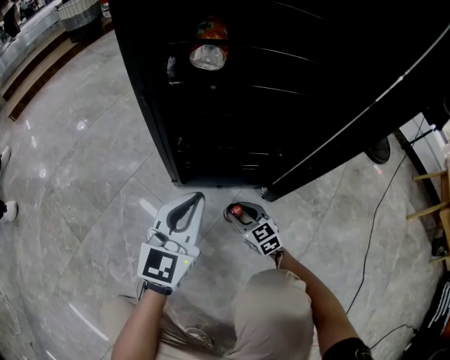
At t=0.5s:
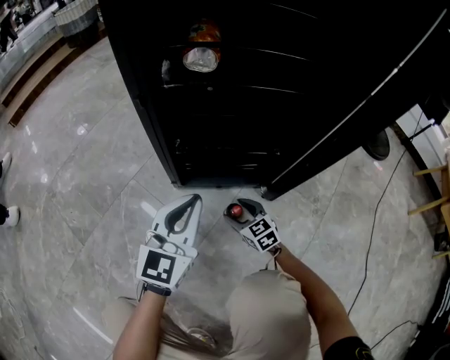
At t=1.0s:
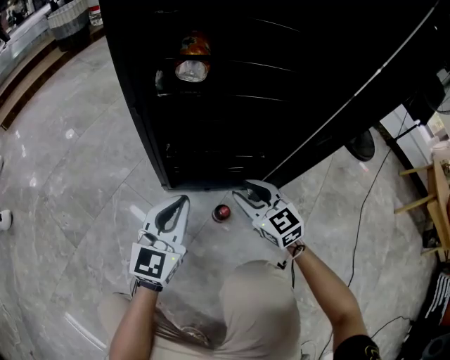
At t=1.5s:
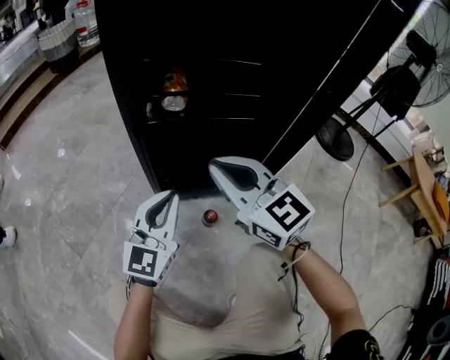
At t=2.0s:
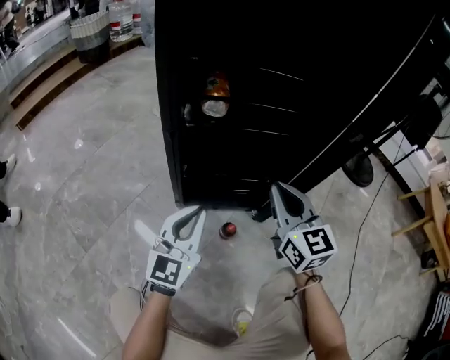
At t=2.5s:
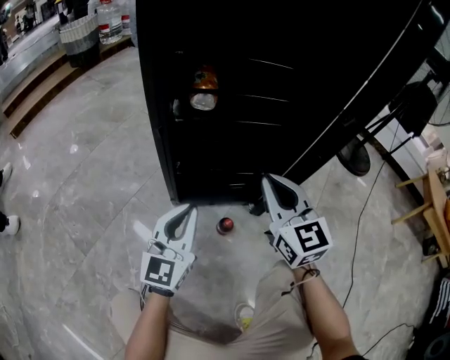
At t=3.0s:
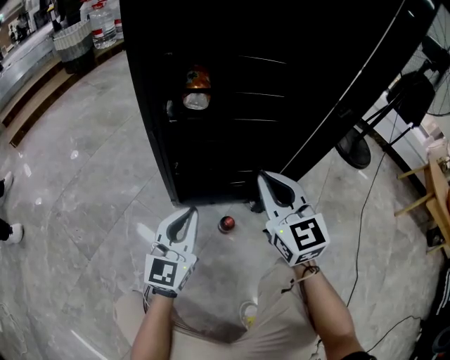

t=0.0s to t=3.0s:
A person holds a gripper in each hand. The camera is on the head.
t=0.0s to t=1.5s: The left gripper heads upward, covering roughly 10 cm. The right gripper shifts about 40 cm upward, rotates about 30 degrees, and closes.
t=1.5s to t=3.0s: The left gripper shifts roughly 5 cm downward. Meanwhile the right gripper goes roughly 10 cm to the right and downward, and swivels some 20 degrees.

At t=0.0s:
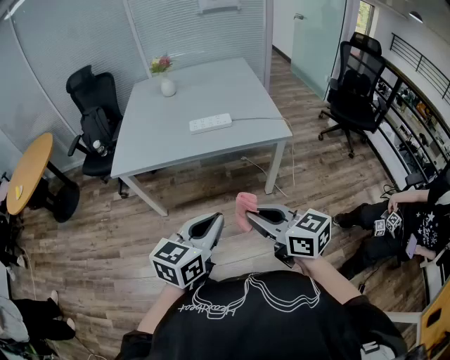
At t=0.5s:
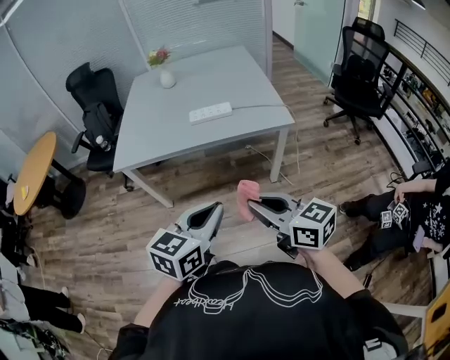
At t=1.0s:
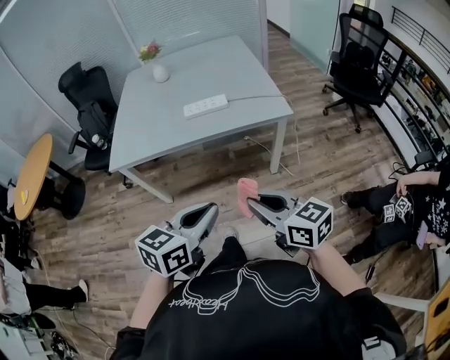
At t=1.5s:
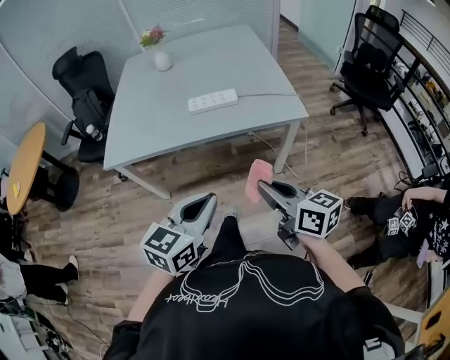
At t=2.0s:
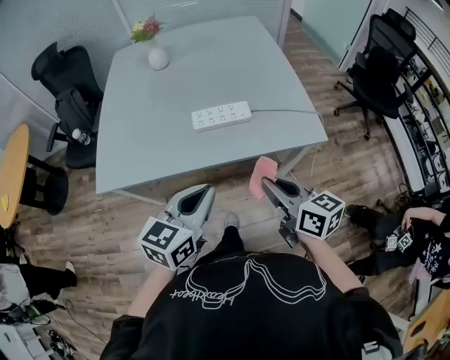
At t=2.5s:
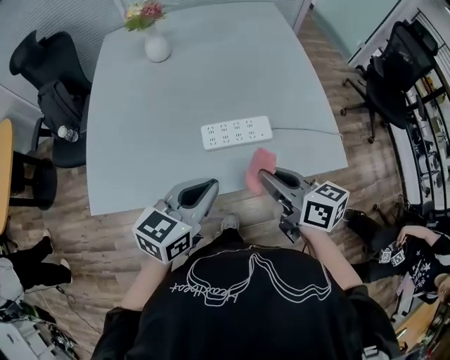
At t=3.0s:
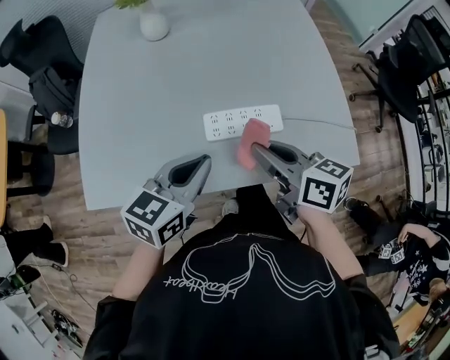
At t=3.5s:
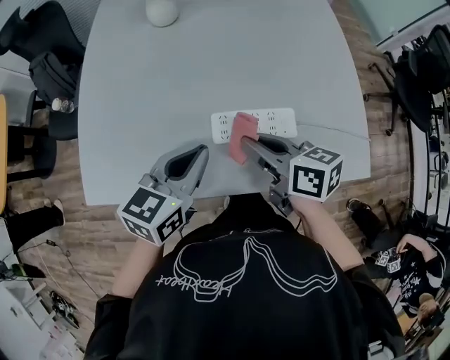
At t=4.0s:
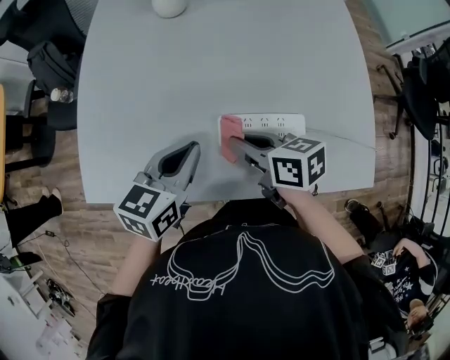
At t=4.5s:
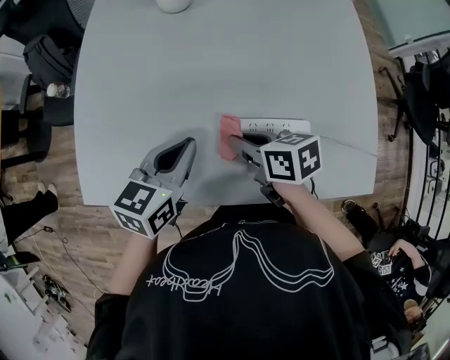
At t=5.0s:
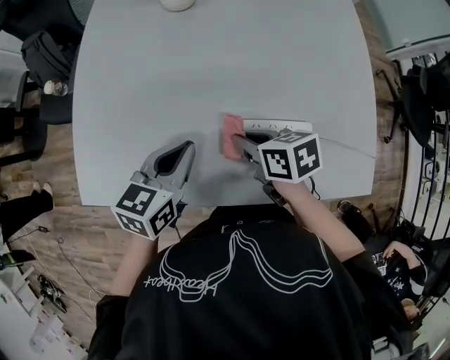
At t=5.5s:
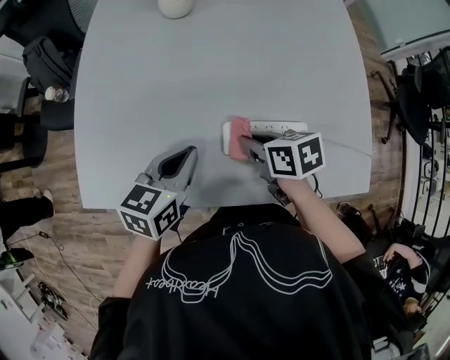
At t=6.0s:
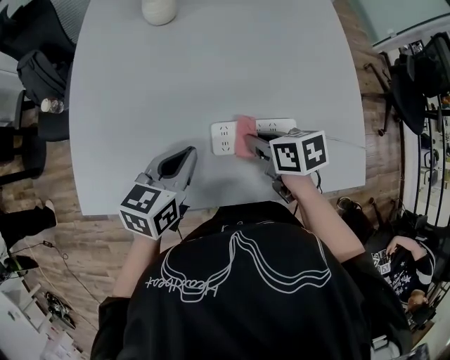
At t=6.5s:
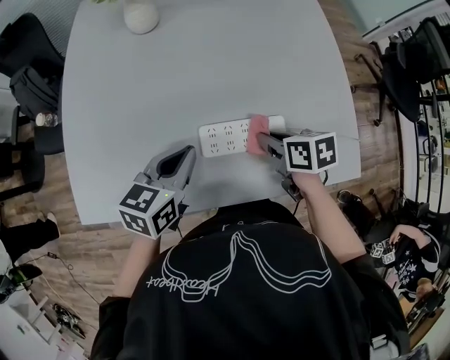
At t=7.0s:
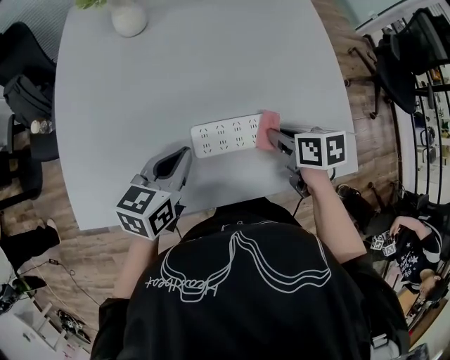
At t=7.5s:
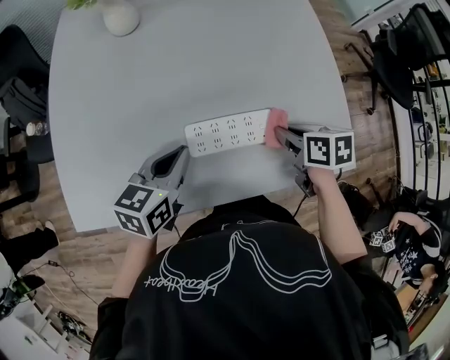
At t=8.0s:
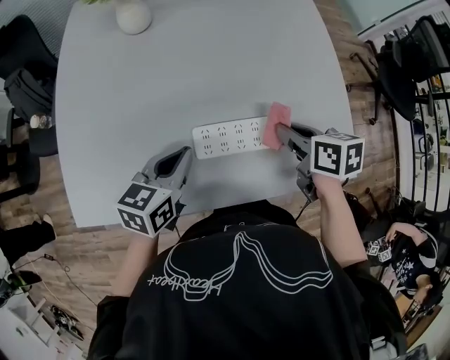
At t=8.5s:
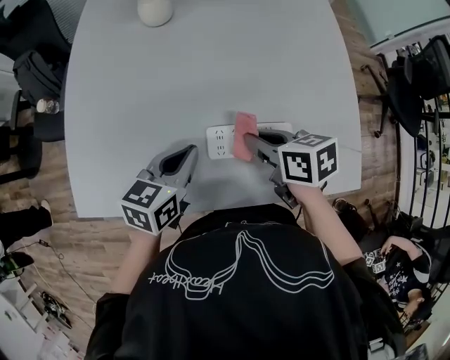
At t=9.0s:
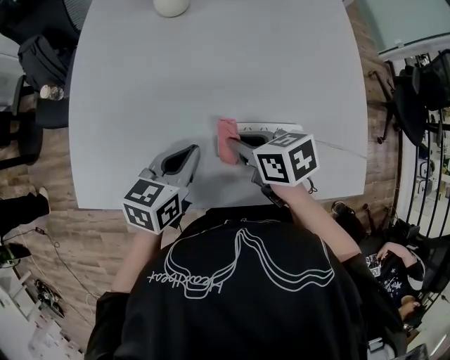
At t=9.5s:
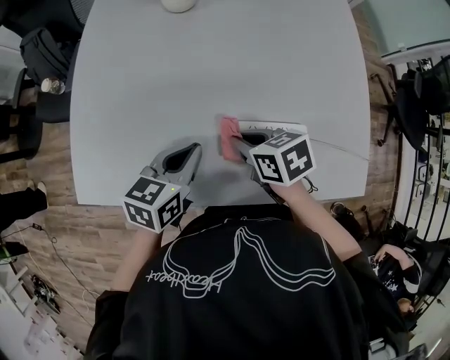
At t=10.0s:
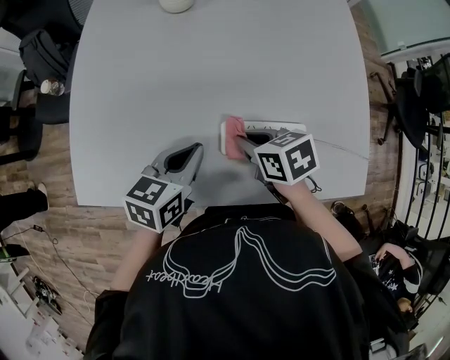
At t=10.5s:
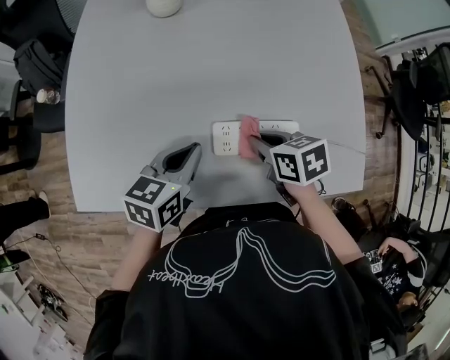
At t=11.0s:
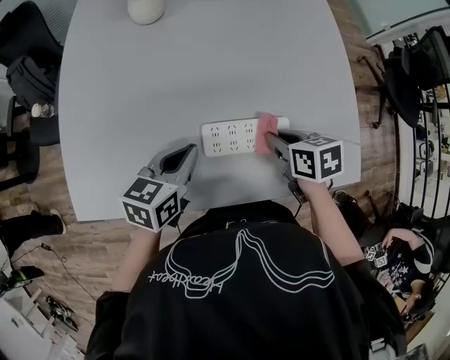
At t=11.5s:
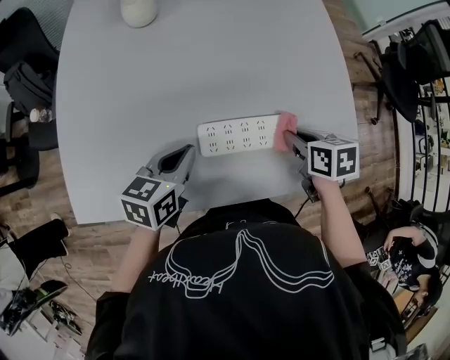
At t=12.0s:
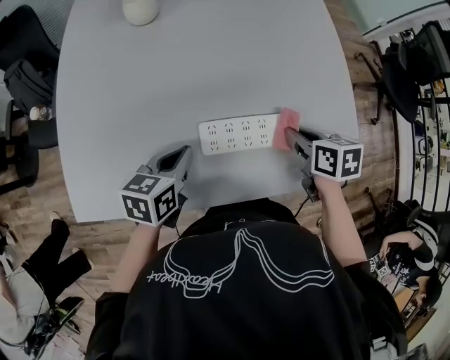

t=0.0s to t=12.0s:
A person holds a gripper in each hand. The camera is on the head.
t=0.0s to t=2.0s: The two grippers go some 35 cm forward.
t=2.0s to t=4.0s: The two grippers go some 35 cm forward. The right gripper swivels some 30 degrees.
t=4.0s to t=6.0s: The right gripper goes roughly 5 cm to the right.
t=6.0s to t=8.0s: The right gripper travels to the right by roughly 10 cm.
t=8.0s to t=10.0s: The right gripper moves to the left, about 20 cm, and changes its angle by about 30 degrees; the left gripper moves to the left, some 5 cm.
t=10.0s to t=12.0s: The right gripper is displaced to the right by roughly 20 cm, and changes its angle by roughly 30 degrees.

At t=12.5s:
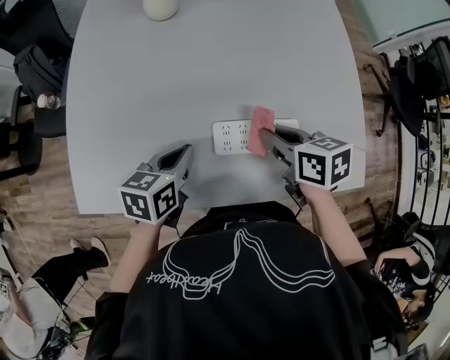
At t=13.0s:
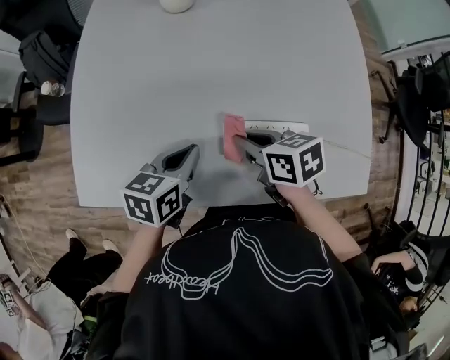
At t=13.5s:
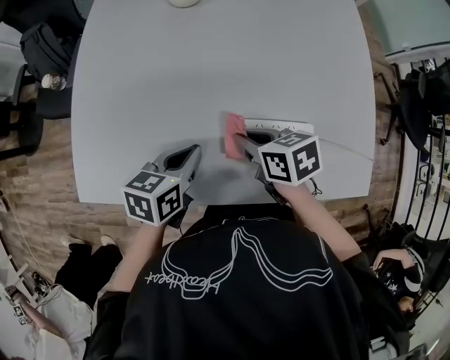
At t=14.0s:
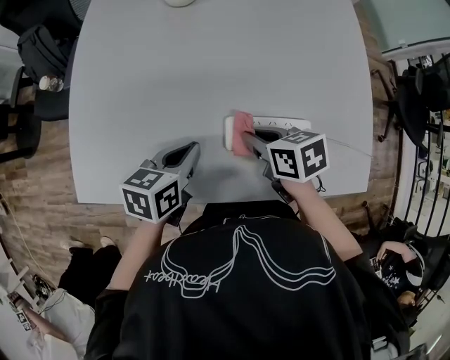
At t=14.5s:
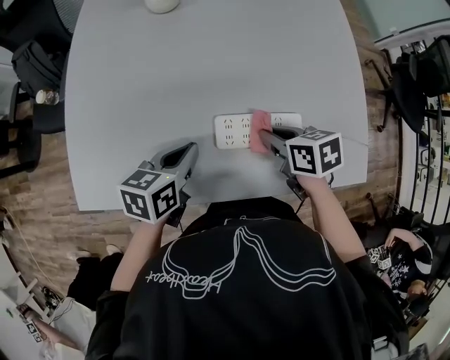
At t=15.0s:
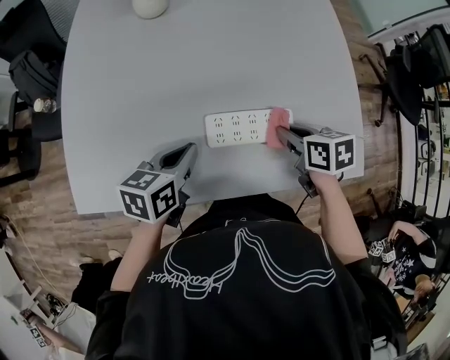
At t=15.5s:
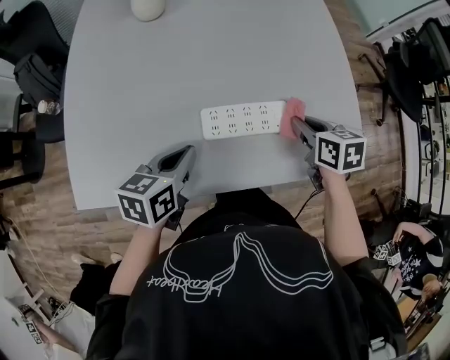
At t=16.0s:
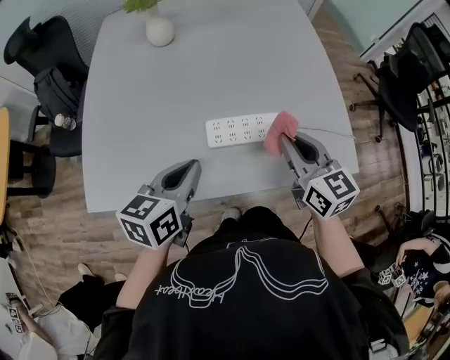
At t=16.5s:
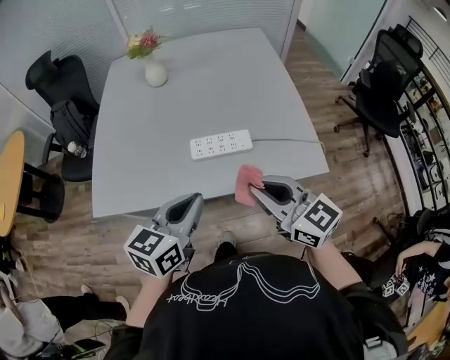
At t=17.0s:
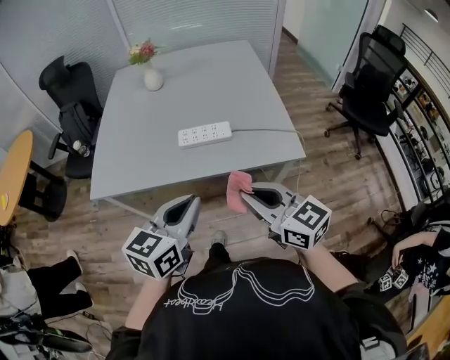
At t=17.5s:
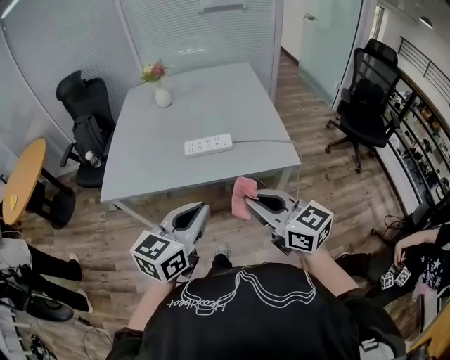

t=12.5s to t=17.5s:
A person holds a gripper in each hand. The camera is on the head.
t=12.5s to t=15.0s: The right gripper goes roughly 5 cm to the right.
t=15.0s to t=17.5s: The two grippers travel together, backward, about 40 cm. Both grippers travel together upward, about 25 cm. The left gripper changes its angle by approximately 40 degrees. The right gripper angles its fingers upward, by roughly 50 degrees.

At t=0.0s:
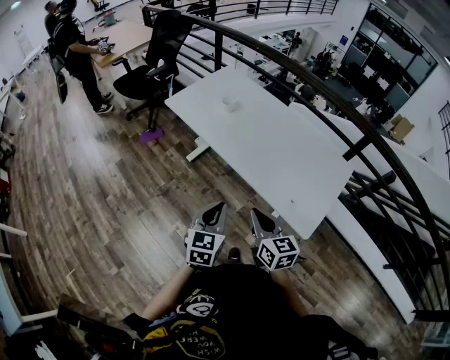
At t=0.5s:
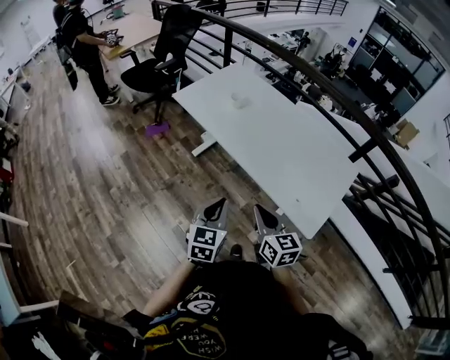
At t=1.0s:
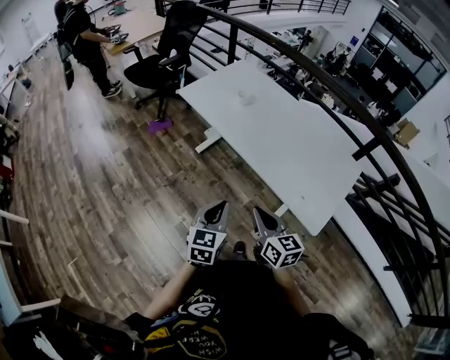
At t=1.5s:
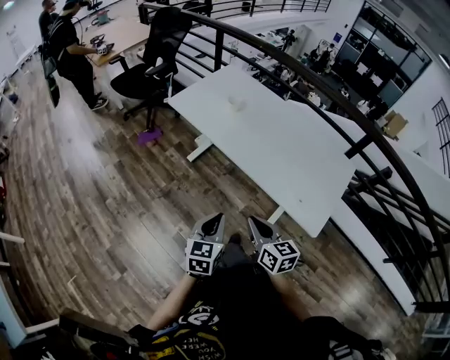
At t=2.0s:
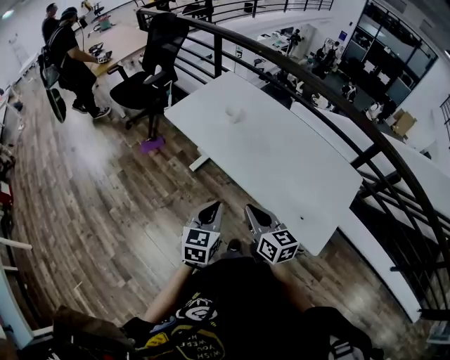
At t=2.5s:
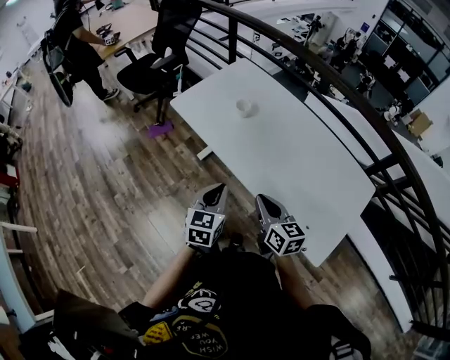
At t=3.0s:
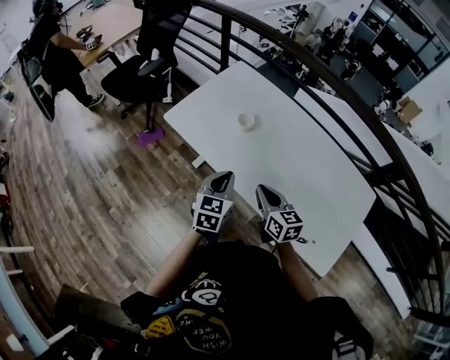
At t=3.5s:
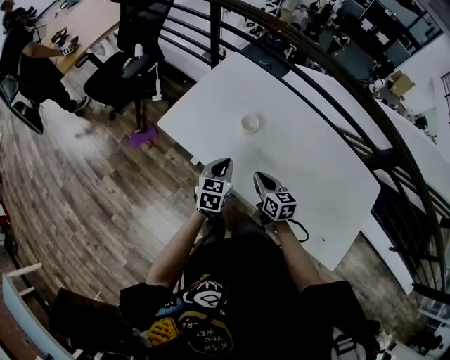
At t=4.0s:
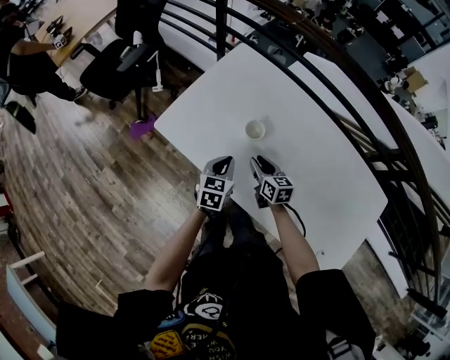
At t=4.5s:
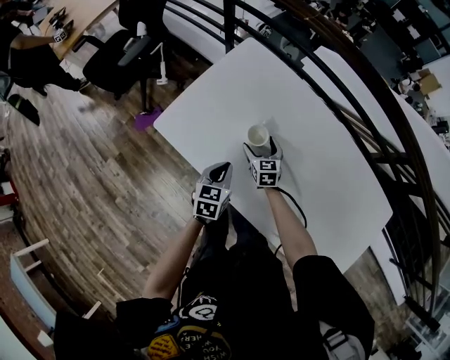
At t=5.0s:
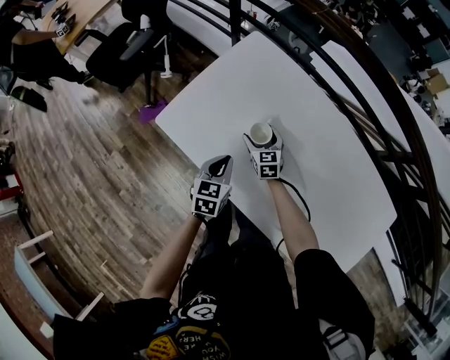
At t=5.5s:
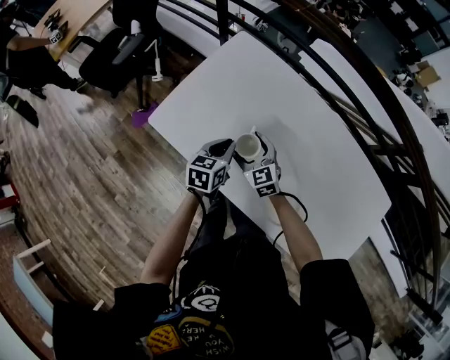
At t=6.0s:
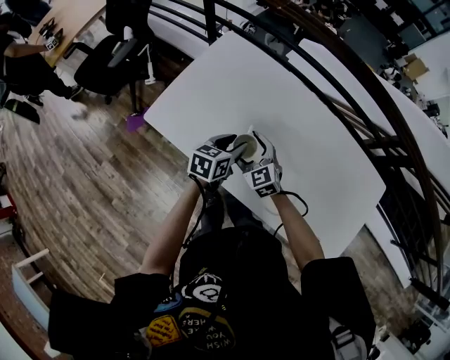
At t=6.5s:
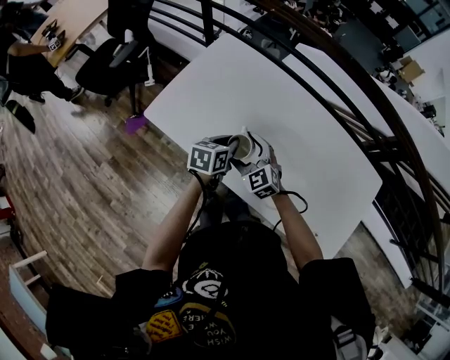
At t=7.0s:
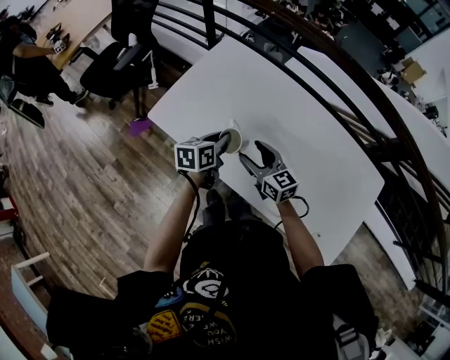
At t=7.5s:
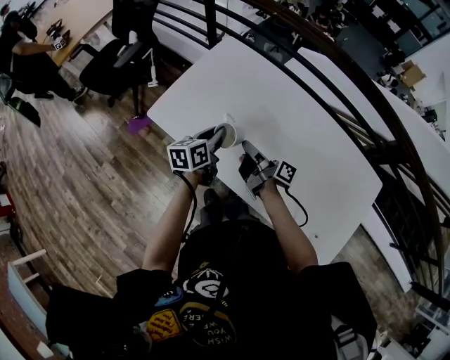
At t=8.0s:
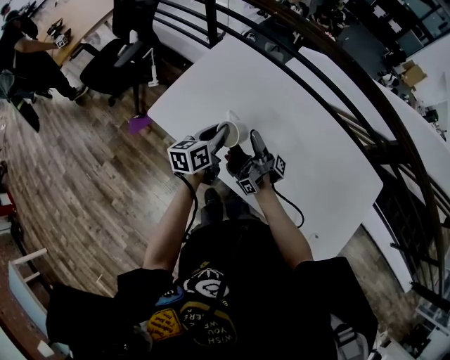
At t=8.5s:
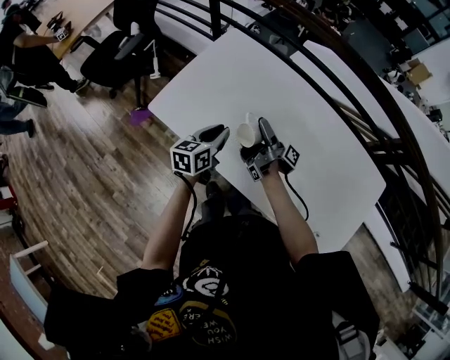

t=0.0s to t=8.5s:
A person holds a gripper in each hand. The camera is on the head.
t=0.0s to t=2.0s: The grippers both shift forward by approximately 10 cm.
t=2.0s to t=4.0s: The two grippers travel together, forward, approximately 50 cm. Both grippers move downward, about 20 cm.
t=4.0s to t=6.5s: The left gripper travels to the right by roughly 5 cm, turns by some 20 degrees, and opens, then closes again, while the right gripper moves upward, about 10 cm, reaches some 10 cm forward, then returns, rotates around the line of its fingers by some 50 degrees, counterclockwise from behind, and opens.
t=6.5s to t=8.5s: The right gripper shifts roughly 5 cm forward, rolls clockwise, seen from behind, by some 120 degrees, and closes, then opens again, while the left gripper heads to the left, covering roughly 5 cm.
